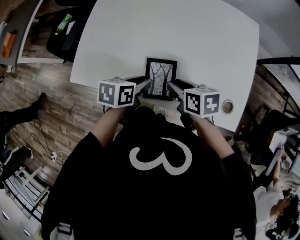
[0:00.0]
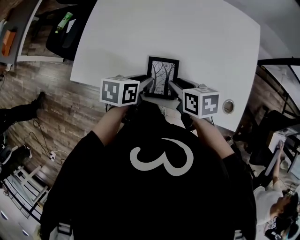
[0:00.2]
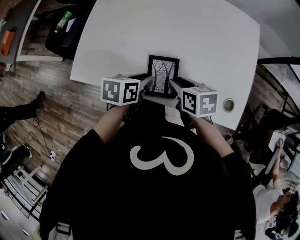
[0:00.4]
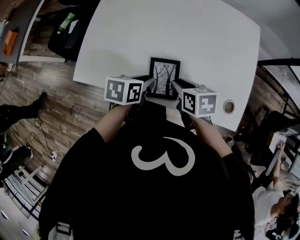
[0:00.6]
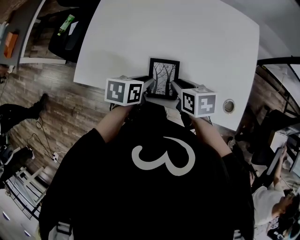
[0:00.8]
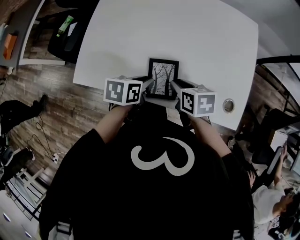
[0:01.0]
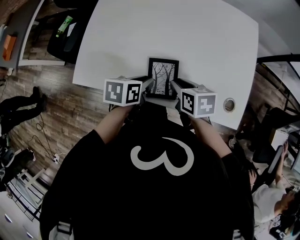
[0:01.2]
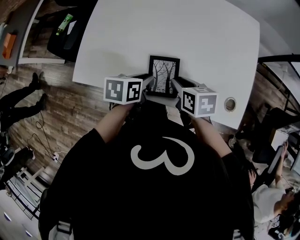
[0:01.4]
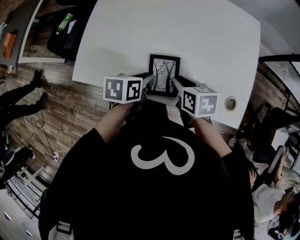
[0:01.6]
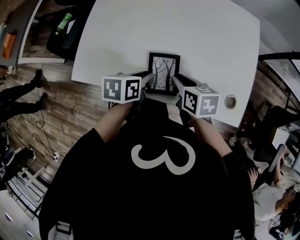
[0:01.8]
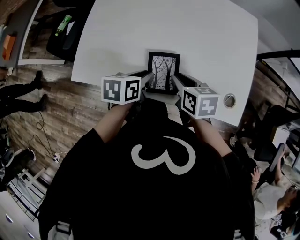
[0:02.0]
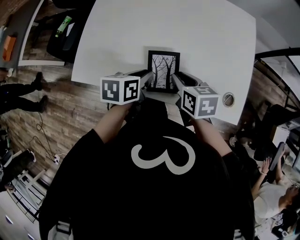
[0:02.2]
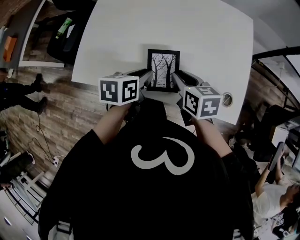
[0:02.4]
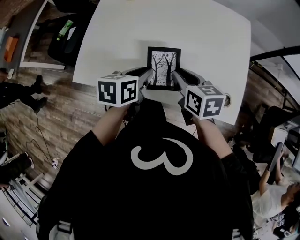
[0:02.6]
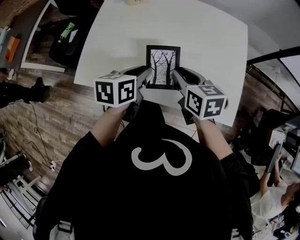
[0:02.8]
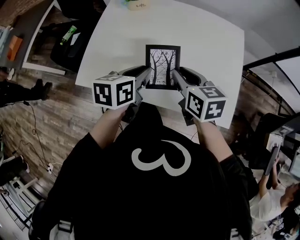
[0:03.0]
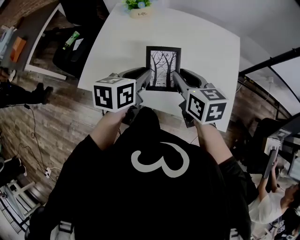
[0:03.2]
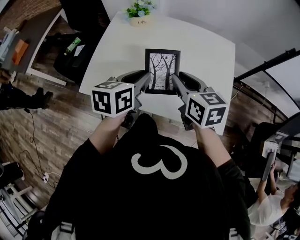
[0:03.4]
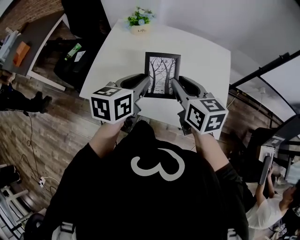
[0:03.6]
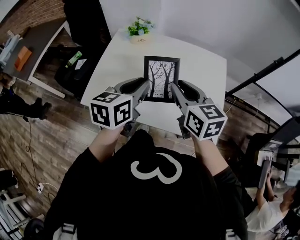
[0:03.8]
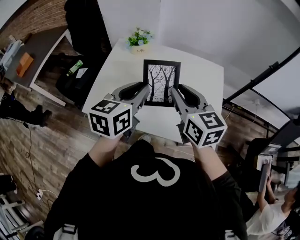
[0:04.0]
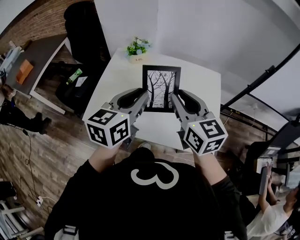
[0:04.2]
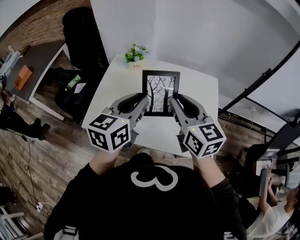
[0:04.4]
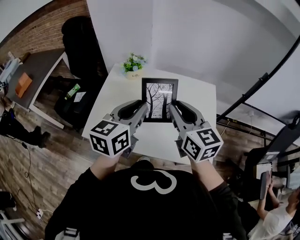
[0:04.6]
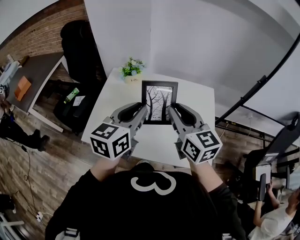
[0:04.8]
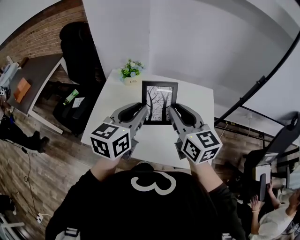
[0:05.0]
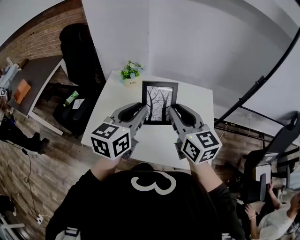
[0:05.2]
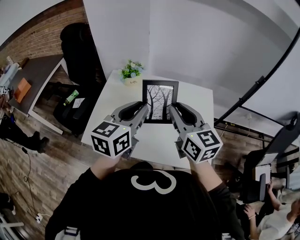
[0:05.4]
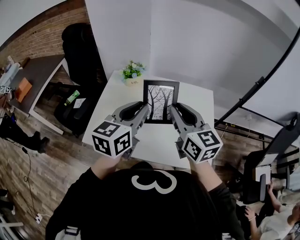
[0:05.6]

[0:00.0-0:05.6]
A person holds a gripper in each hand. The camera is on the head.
0:00.0 to 0:01.4: There are only small adjustments of the grippers.
0:01.4 to 0:02.8: The grippers both shift upward by about 10 cm.
0:02.8 to 0:04.2: The two grippers go about 25 cm upward. The left gripper changes its angle by roughly 30 degrees; the right gripper swivels approximately 30 degrees.
0:04.2 to 0:05.6: The grippers move only a little.

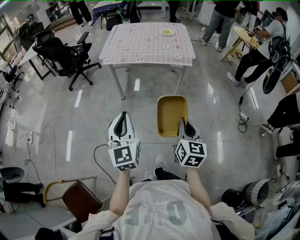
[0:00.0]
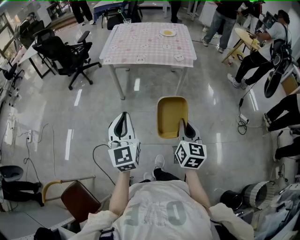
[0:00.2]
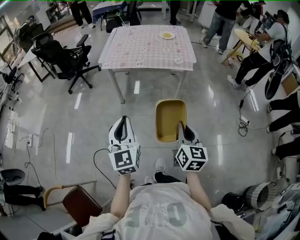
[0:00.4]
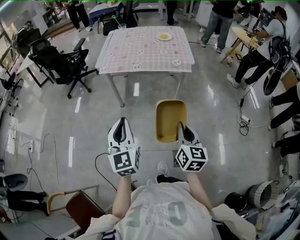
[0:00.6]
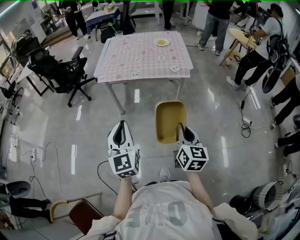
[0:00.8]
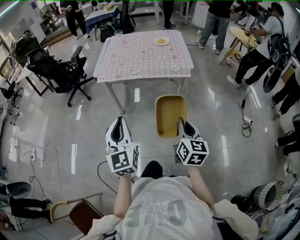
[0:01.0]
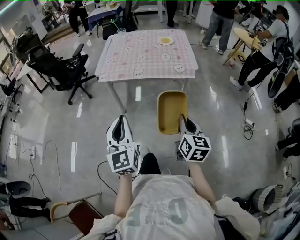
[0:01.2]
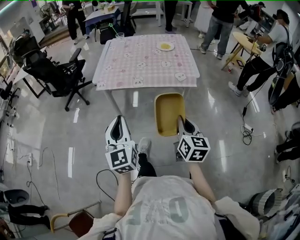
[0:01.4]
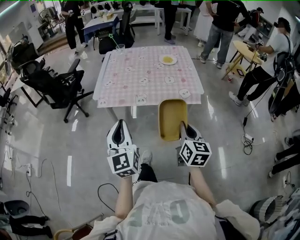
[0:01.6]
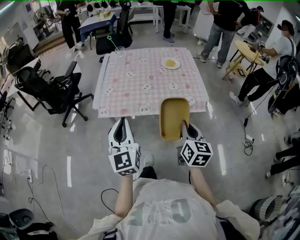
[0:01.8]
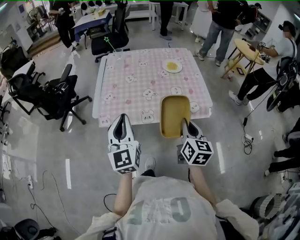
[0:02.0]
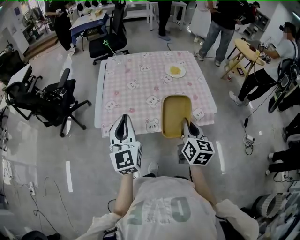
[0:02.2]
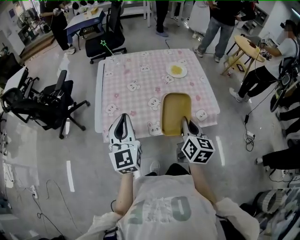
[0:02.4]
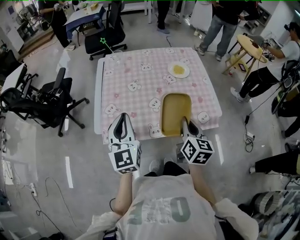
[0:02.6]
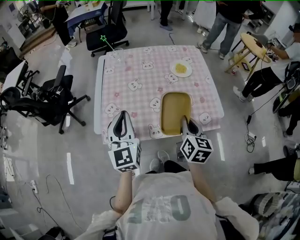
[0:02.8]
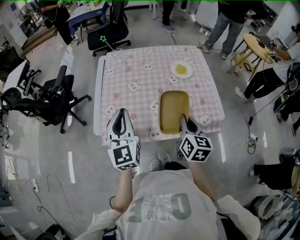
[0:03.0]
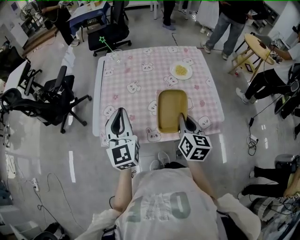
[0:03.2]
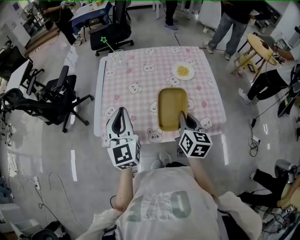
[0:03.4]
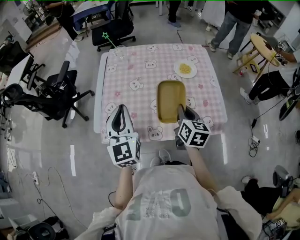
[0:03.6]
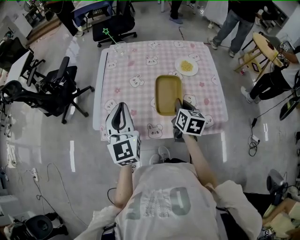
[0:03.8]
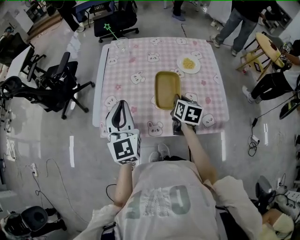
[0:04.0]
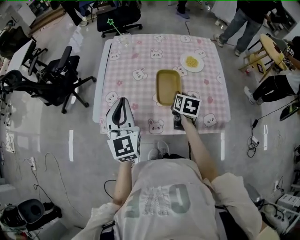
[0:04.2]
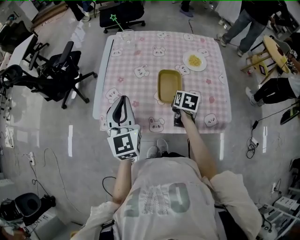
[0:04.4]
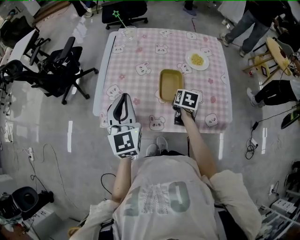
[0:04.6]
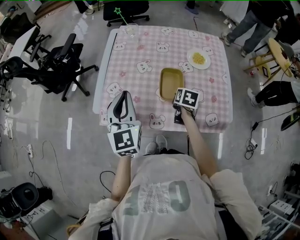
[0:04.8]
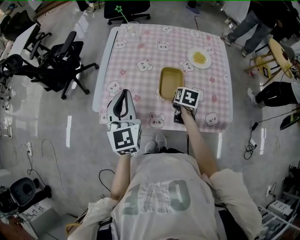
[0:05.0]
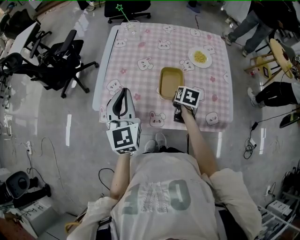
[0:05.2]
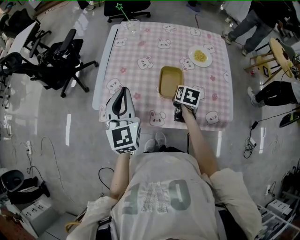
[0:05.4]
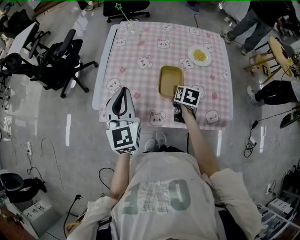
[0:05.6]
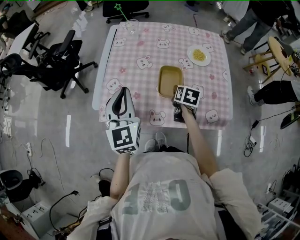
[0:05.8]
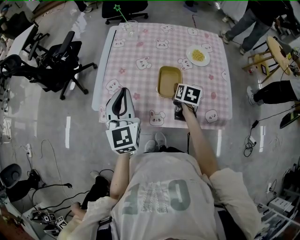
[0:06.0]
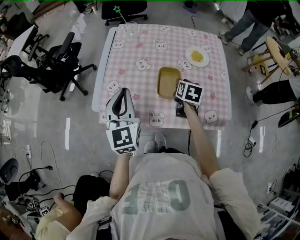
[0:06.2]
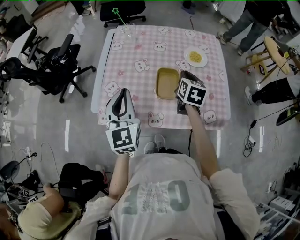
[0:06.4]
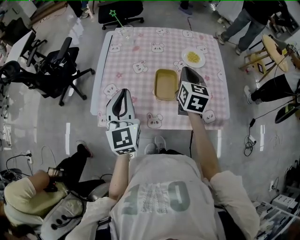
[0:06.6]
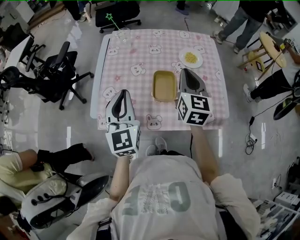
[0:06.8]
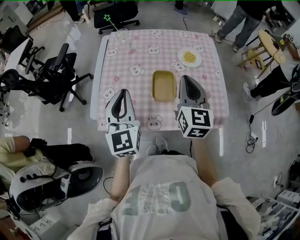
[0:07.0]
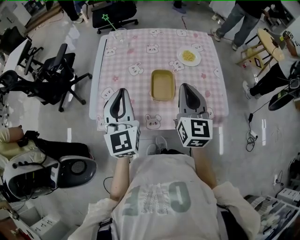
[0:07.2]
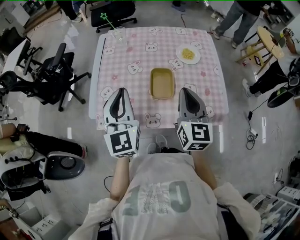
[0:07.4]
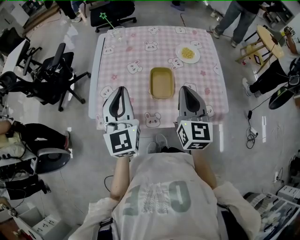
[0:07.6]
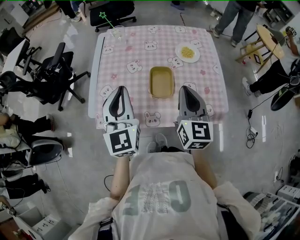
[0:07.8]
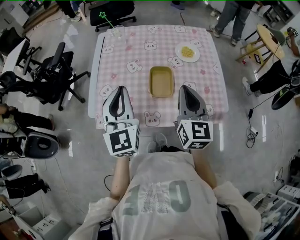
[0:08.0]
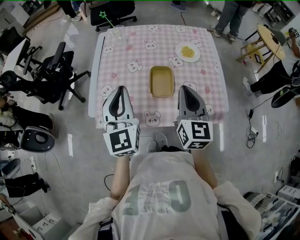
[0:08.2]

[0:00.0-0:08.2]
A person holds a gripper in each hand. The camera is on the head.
0:00.0 to 0:01.6: The grippers both shift forward by roughly 30 cm.
0:01.6 to 0:03.2: Both grippers move forward, about 35 cm.
0:03.2 to 0:05.0: The right gripper is displaced downward and forward by about 20 cm, and tilts its fingers about 30 degrees downward.
0:05.0 to 0:06.6: The right gripper moves upward, some 20 cm, angles its fingers upward, by about 30 degrees, and opens, then closes again.
0:06.6 to 0:08.2: The right gripper travels backward by approximately 10 cm.

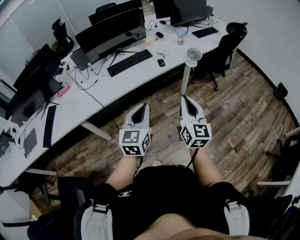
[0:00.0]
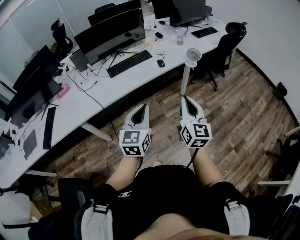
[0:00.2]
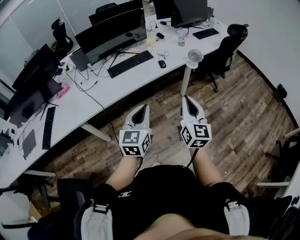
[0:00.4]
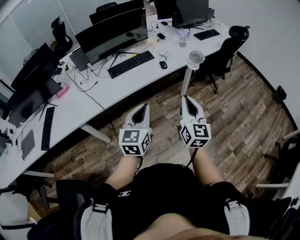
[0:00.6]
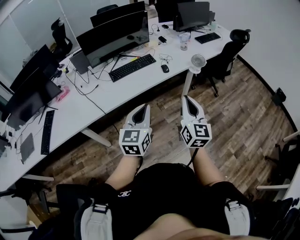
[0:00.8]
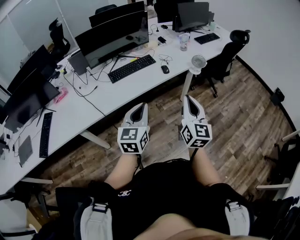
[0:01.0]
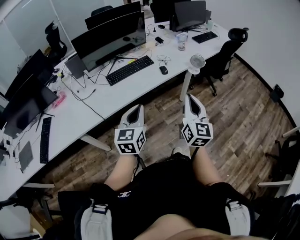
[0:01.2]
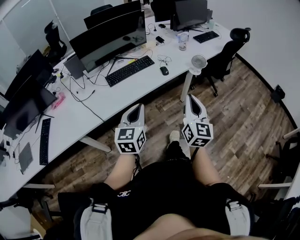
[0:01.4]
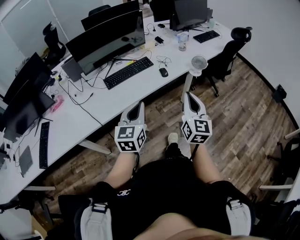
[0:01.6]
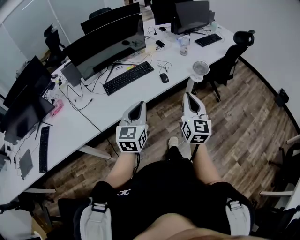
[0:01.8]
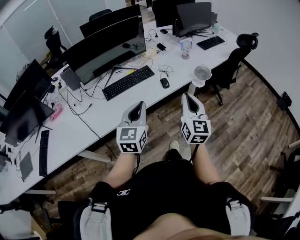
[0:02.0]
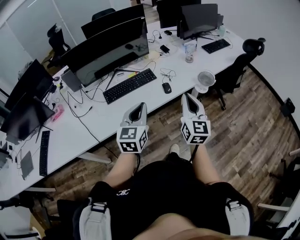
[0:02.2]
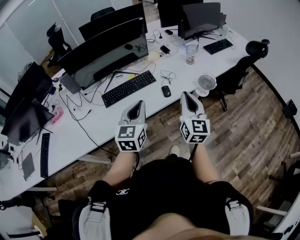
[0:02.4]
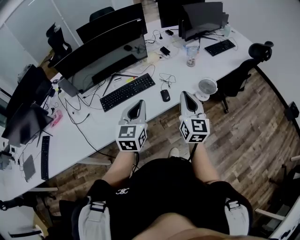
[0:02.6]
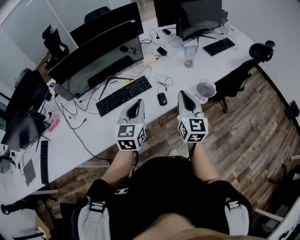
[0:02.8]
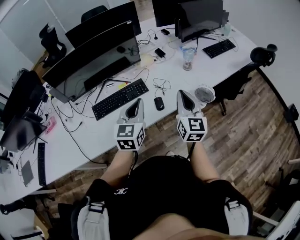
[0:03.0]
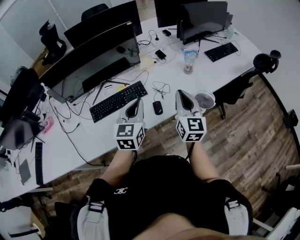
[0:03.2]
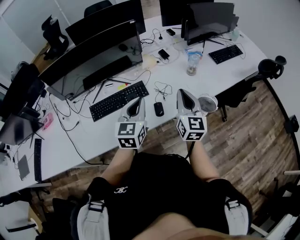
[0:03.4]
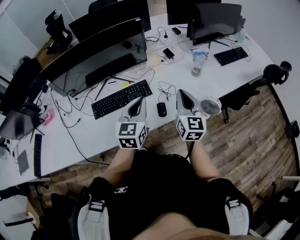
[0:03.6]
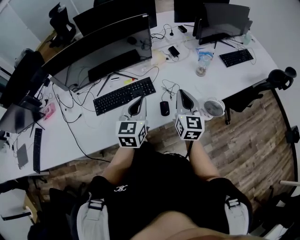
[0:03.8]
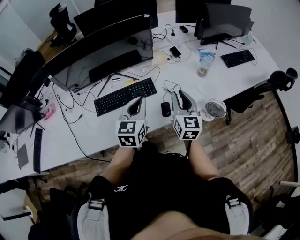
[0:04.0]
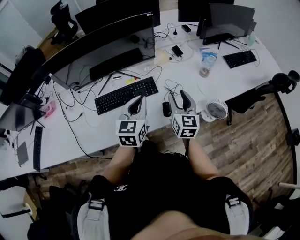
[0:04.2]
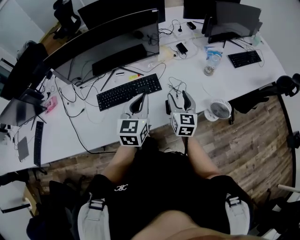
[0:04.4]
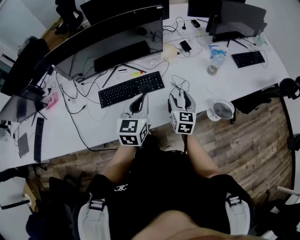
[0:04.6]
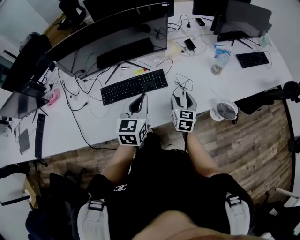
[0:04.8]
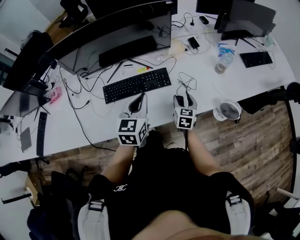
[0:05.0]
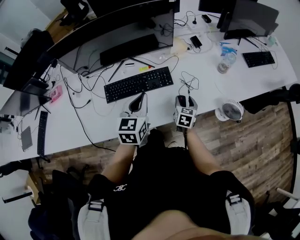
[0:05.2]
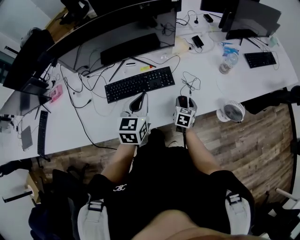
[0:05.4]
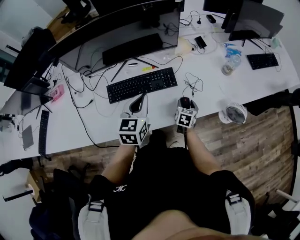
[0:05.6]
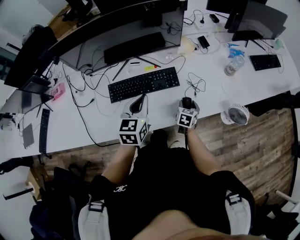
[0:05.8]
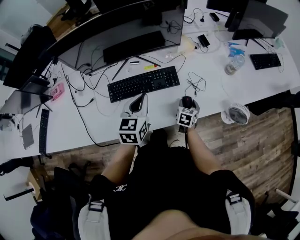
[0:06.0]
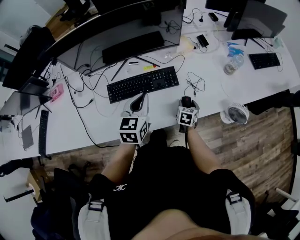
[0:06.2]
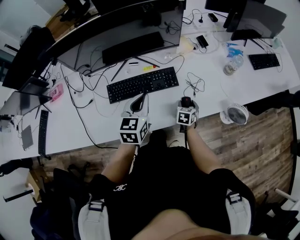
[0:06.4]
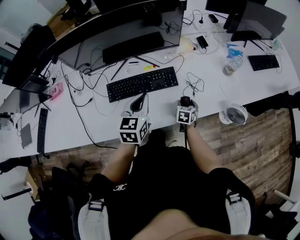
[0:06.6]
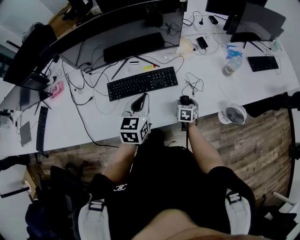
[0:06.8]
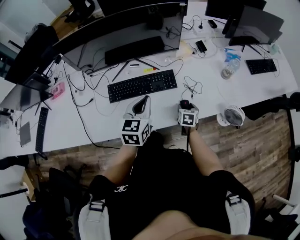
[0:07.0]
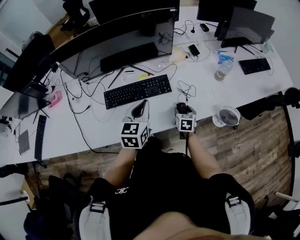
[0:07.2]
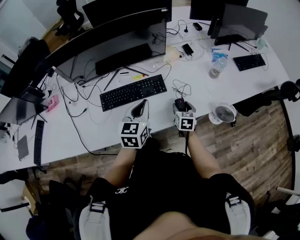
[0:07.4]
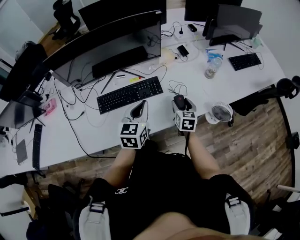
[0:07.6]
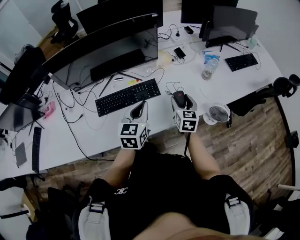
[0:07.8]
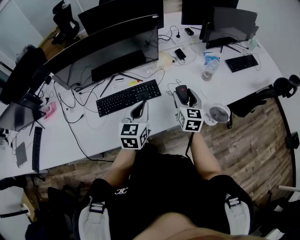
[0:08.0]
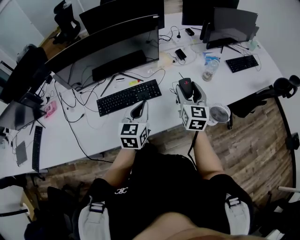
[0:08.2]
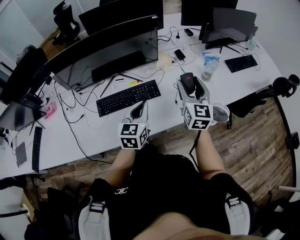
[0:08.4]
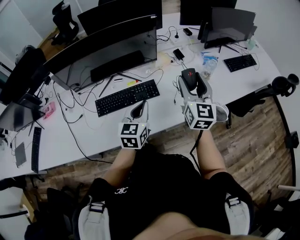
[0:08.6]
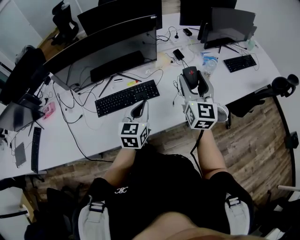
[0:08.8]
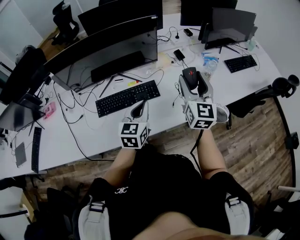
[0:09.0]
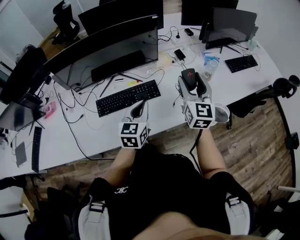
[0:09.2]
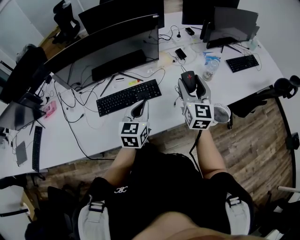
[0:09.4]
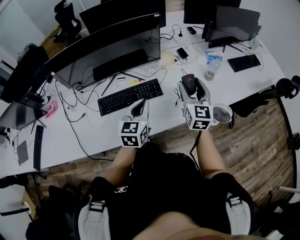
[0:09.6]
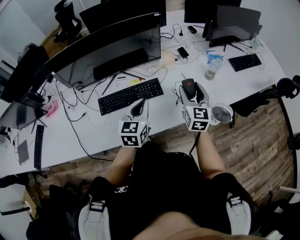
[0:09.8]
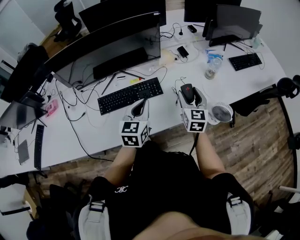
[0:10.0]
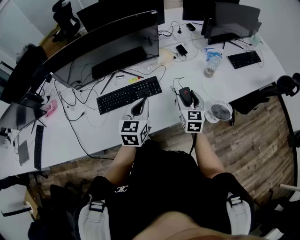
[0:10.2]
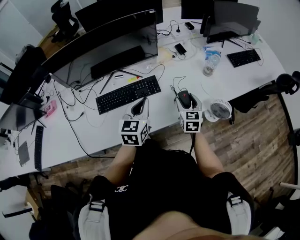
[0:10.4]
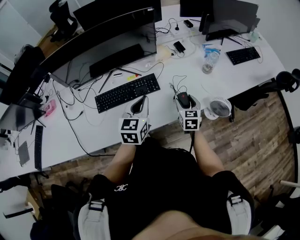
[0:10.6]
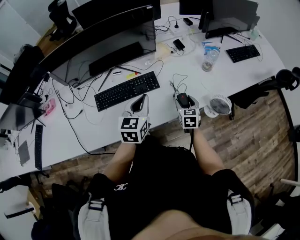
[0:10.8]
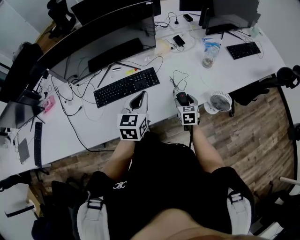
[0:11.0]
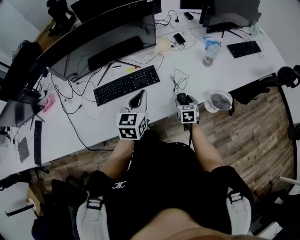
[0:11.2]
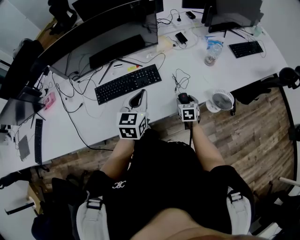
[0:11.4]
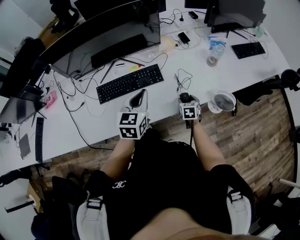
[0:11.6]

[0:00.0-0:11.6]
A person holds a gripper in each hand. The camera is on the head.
0:00.0 to 0:01.4: The left gripper goes roughly 15 cm forward and to the left, while the right gripper shifts approximately 10 cm forward.
0:01.4 to 0:02.8: Both grippers travel together forward, roughly 35 cm.
0:02.8 to 0:04.4: The right gripper goes about 20 cm forward and downward, and opens up; the left gripper moves forward, about 10 cm.
0:04.4 to 0:05.8: The left gripper shifts roughly 10 cm to the left and downward. Meanwhile the right gripper goes roughly 20 cm downward, and tips its fingers downward by roughly 30 degrees.
0:05.8 to 0:07.2: The grippers stay close to where they were, moving slightly.
0:07.2 to 0:08.8: The left gripper goes roughly 5 cm to the right. The right gripper goes roughly 35 cm upward, and angles its fingers upward, by some 50 degrees.
0:08.8 to 0:10.2: The right gripper goes some 20 cm downward, and changes its angle by roughly 20 degrees.
0:10.2 to 0:11.6: The right gripper moves downward, roughly 20 cm, and turns by approximately 30 degrees.
